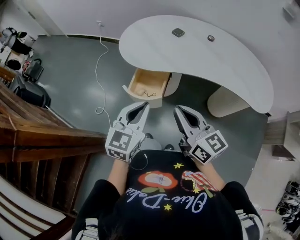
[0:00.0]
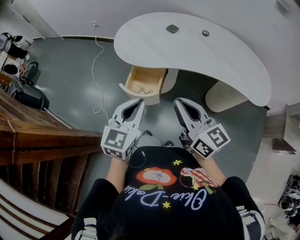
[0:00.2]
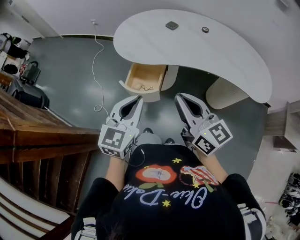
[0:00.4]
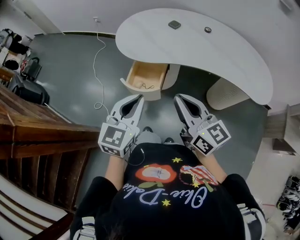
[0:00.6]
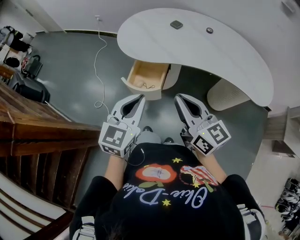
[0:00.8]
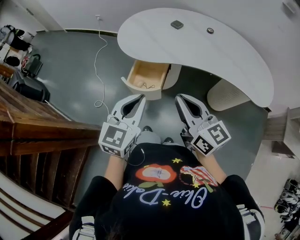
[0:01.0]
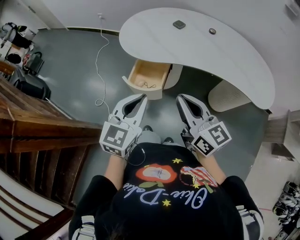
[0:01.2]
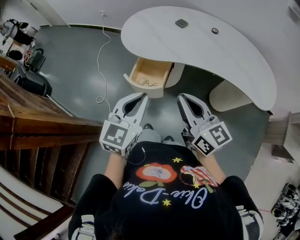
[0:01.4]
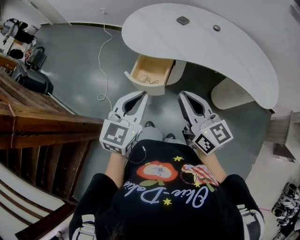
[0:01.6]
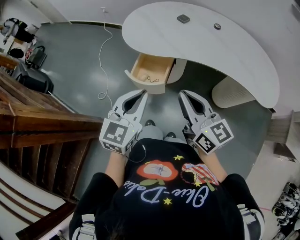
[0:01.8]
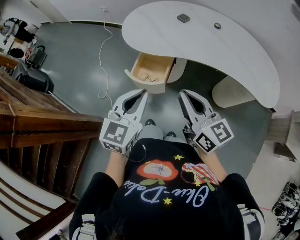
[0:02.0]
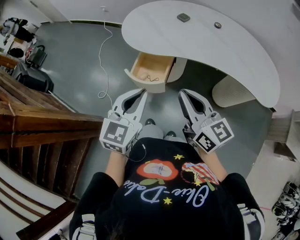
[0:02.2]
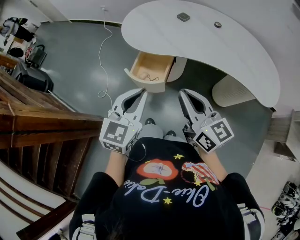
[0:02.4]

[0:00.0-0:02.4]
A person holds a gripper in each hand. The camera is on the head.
0:00.0 to 0:01.2: The grippers make only small movements.
0:01.2 to 0:02.4: Neither gripper changes place.

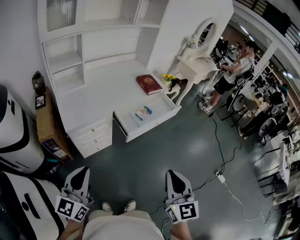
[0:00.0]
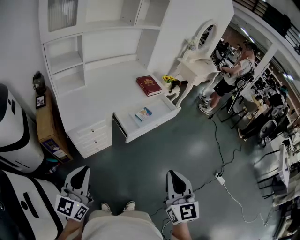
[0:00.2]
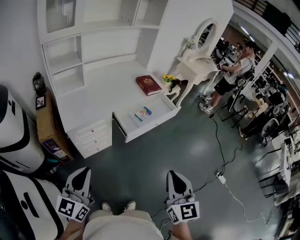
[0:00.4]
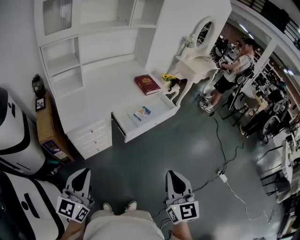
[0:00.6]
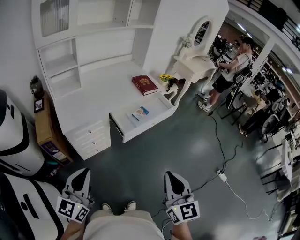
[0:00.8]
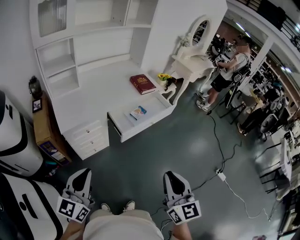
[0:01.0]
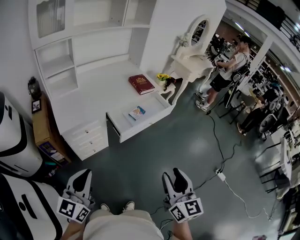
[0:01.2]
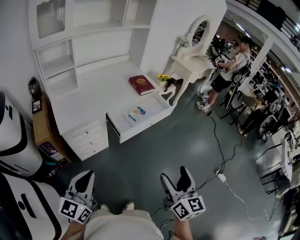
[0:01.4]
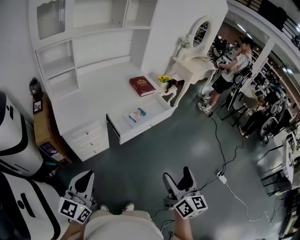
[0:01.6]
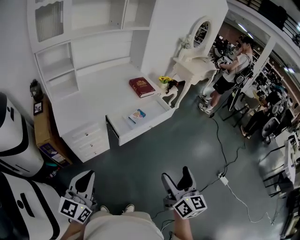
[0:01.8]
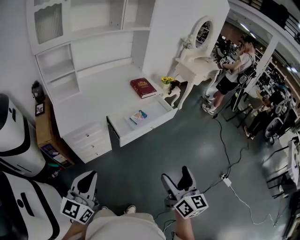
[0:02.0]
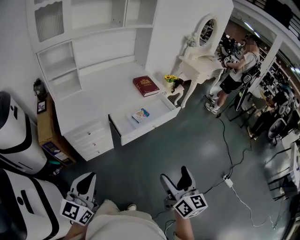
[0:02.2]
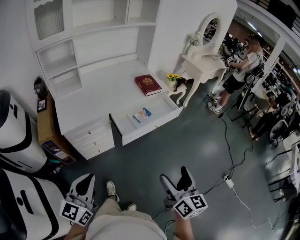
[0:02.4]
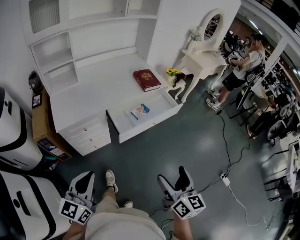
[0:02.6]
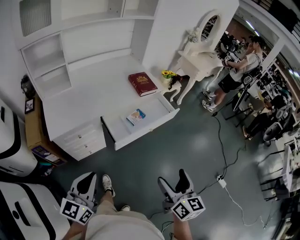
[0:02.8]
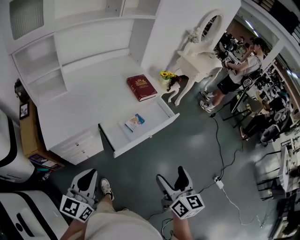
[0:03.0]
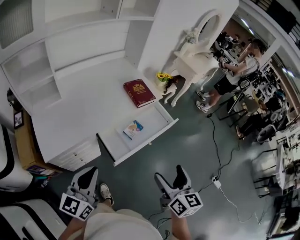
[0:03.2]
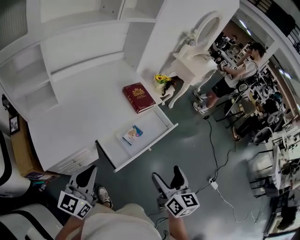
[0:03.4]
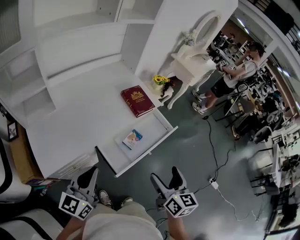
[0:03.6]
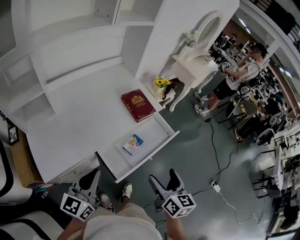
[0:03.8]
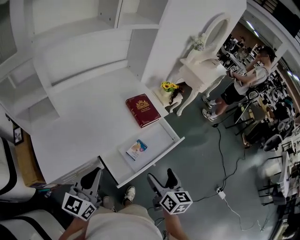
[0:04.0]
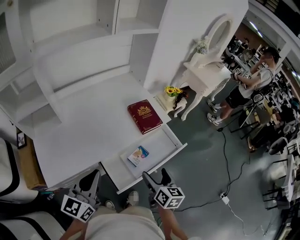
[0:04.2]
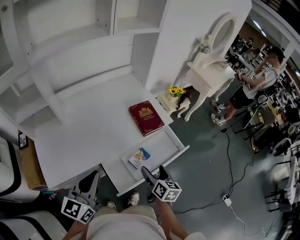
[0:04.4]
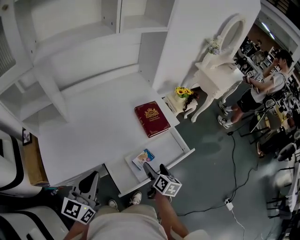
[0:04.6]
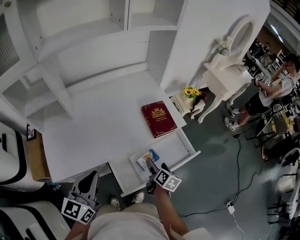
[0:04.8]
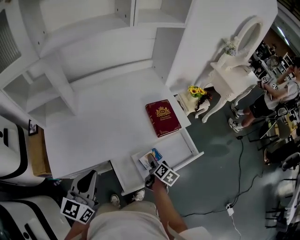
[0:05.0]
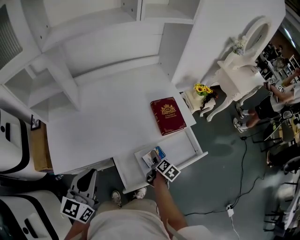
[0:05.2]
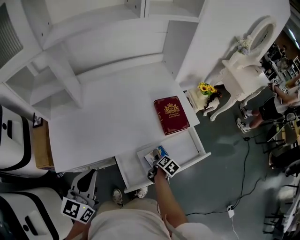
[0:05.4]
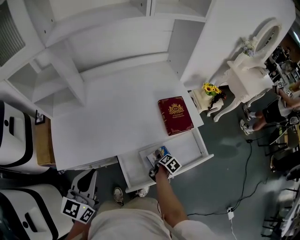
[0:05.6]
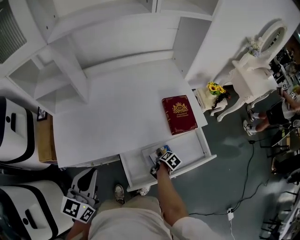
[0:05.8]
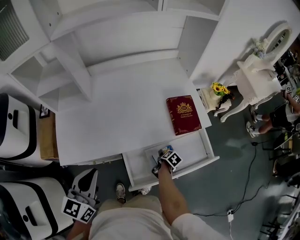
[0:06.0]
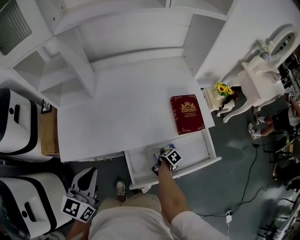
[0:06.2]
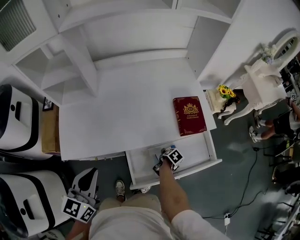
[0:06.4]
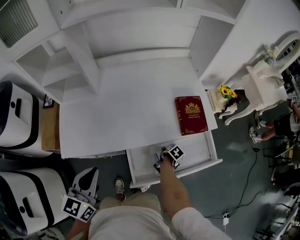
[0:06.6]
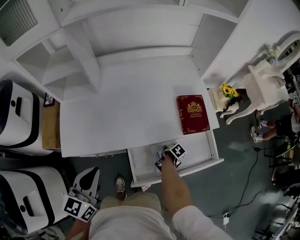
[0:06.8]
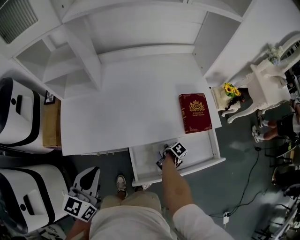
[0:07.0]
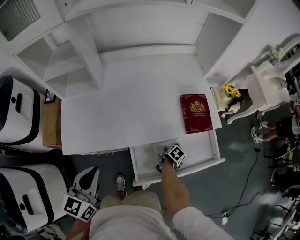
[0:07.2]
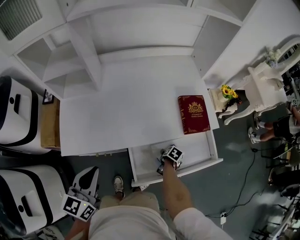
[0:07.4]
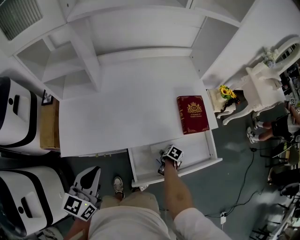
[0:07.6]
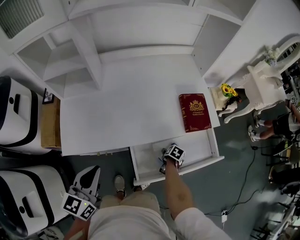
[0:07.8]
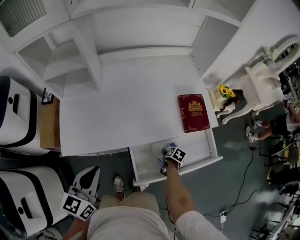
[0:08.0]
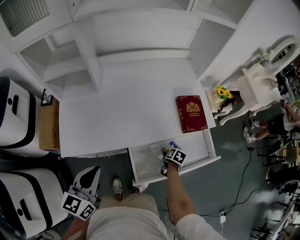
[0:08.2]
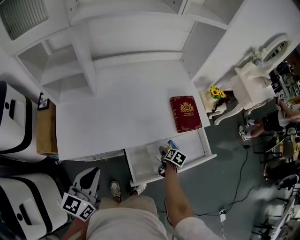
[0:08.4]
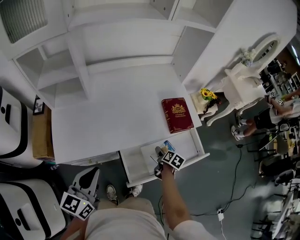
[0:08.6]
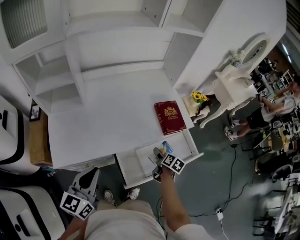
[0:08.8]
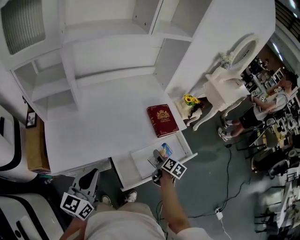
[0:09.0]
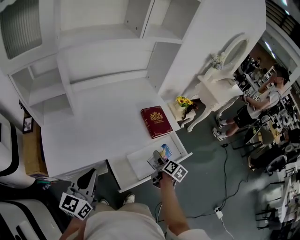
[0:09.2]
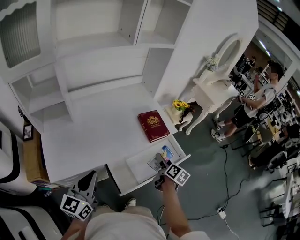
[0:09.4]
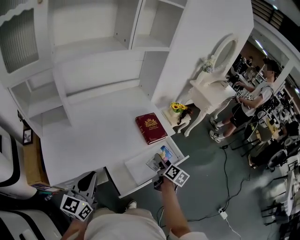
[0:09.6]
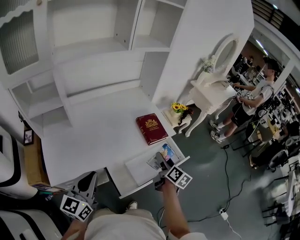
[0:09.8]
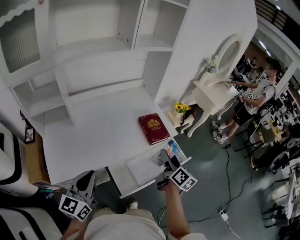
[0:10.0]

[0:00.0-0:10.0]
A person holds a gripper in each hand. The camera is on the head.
0:00.0 to 0:01.4: Both grippers move to the right, roughly 10 cm. The right gripper opens up.
0:01.4 to 0:02.8: The right gripper goes approximately 15 cm forward and downward; the left gripper is displaced forward by roughly 10 cm.
0:02.8 to 0:04.2: Both grippers move forward, approximately 35 cm.
0:04.2 to 0:05.8: The left gripper heads to the left, covering some 5 cm, and swivels some 20 degrees, while the right gripper is displaced downward and forward by about 30 cm, and tips its fingers downward by approximately 40 degrees.
0:05.8 to 0:07.2: The left gripper ends up approximately 5 cm from where it was.
0:07.2 to 0:08.6: The right gripper travels upward by about 10 cm, and rotates some 20 degrees.
0:08.6 to 0:10.0: The right gripper travels upward by some 30 cm, and tips its fingers upward by some 40 degrees; the left gripper is displaced upward by about 5 cm.

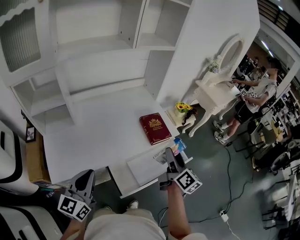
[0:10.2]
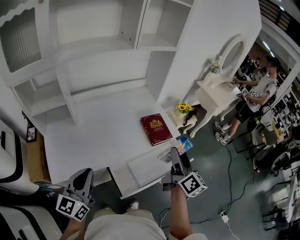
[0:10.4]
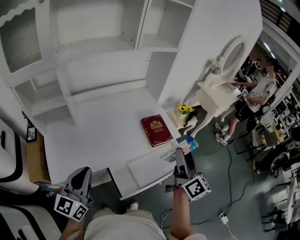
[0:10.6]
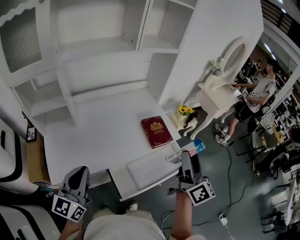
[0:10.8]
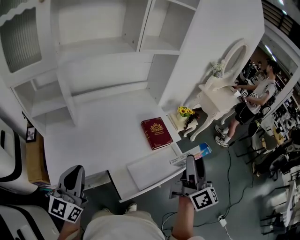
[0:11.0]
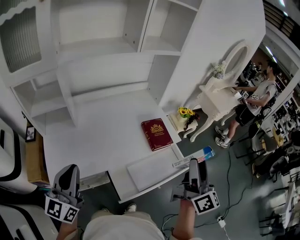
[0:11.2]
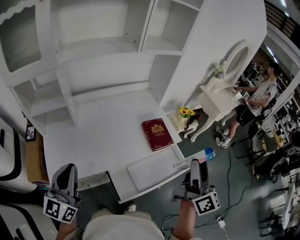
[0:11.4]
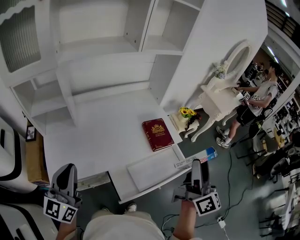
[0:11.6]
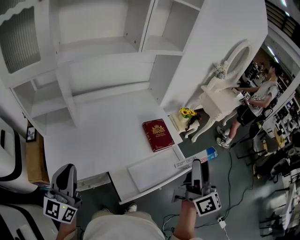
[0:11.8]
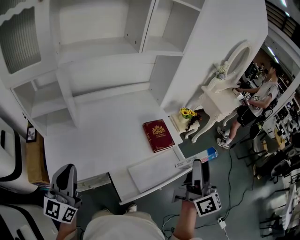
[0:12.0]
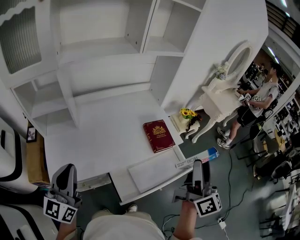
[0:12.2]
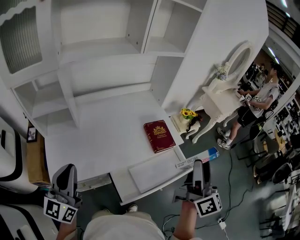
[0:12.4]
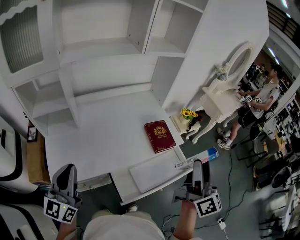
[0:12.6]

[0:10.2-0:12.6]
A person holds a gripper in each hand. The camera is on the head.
0:10.2 to 0:11.4: The right gripper heads upward, covering approximately 15 cm. The left gripper shifts approximately 10 cm upward and to the left.
0:11.4 to 0:12.6: There are only small adjustments of the grippers.

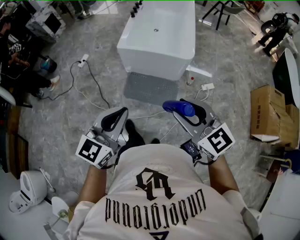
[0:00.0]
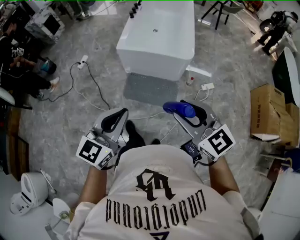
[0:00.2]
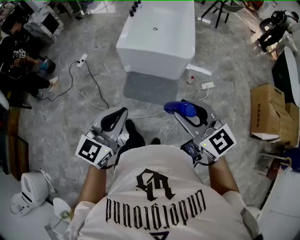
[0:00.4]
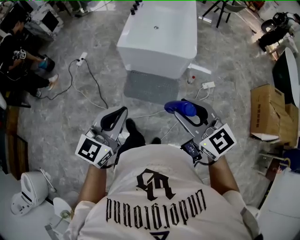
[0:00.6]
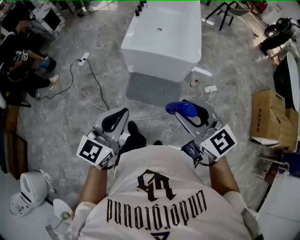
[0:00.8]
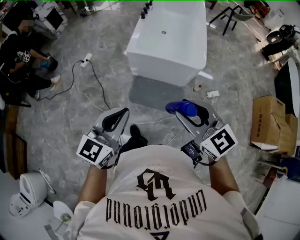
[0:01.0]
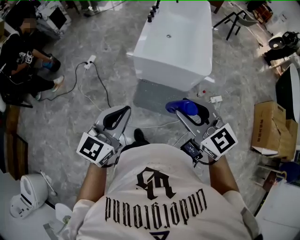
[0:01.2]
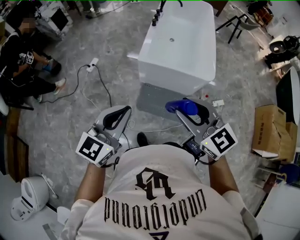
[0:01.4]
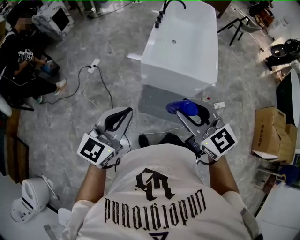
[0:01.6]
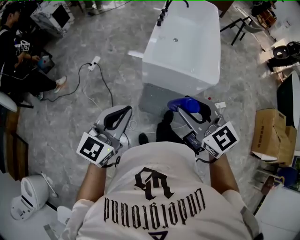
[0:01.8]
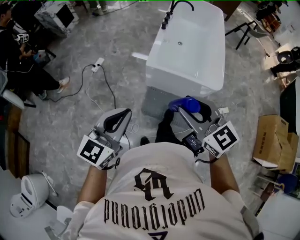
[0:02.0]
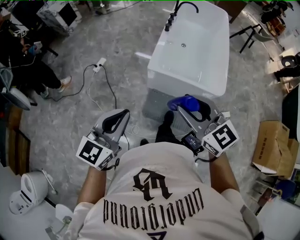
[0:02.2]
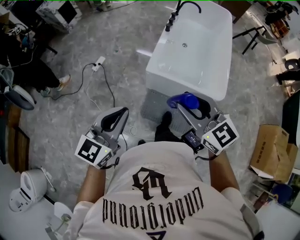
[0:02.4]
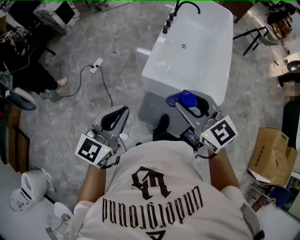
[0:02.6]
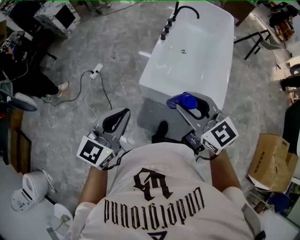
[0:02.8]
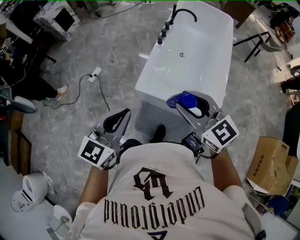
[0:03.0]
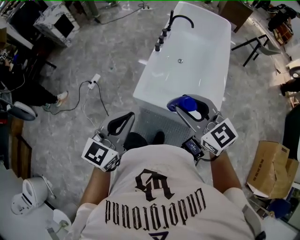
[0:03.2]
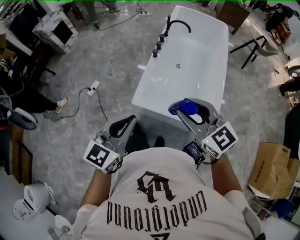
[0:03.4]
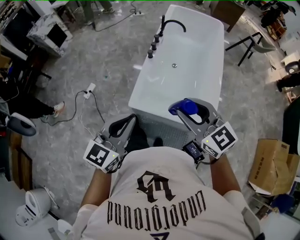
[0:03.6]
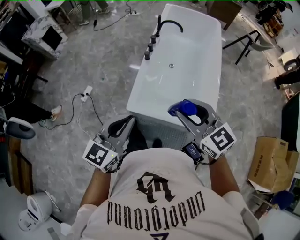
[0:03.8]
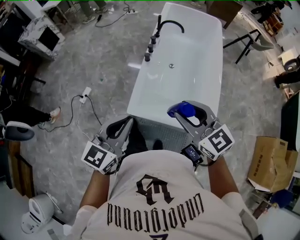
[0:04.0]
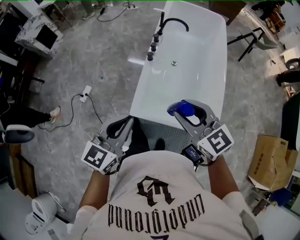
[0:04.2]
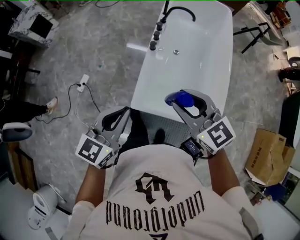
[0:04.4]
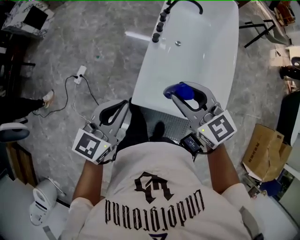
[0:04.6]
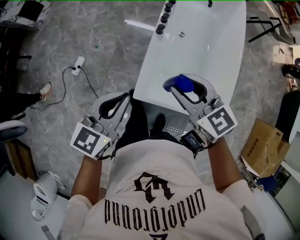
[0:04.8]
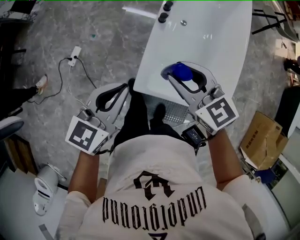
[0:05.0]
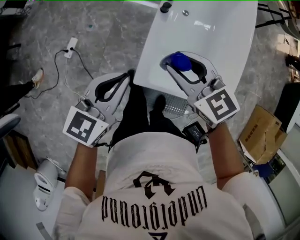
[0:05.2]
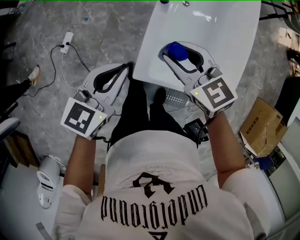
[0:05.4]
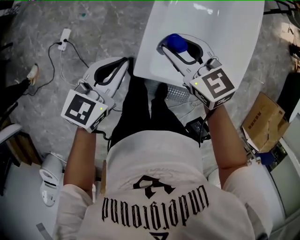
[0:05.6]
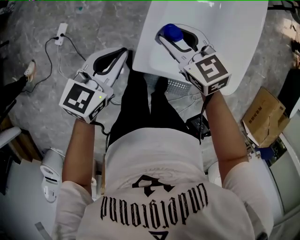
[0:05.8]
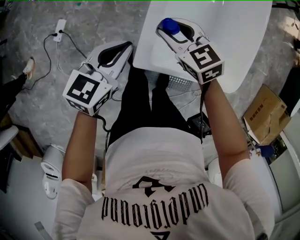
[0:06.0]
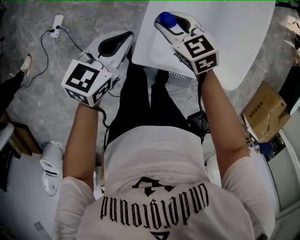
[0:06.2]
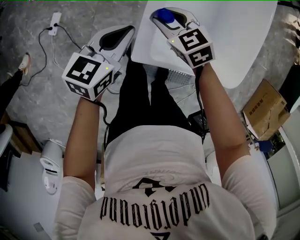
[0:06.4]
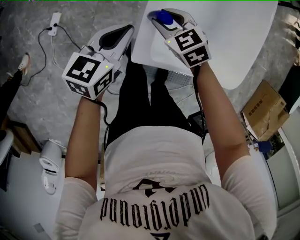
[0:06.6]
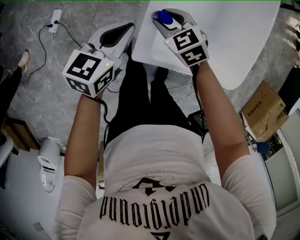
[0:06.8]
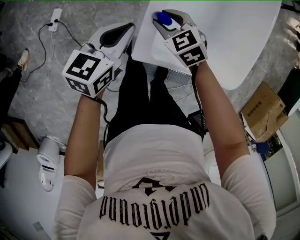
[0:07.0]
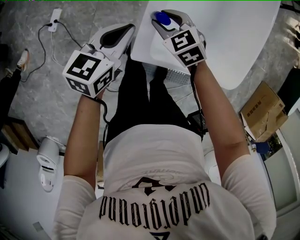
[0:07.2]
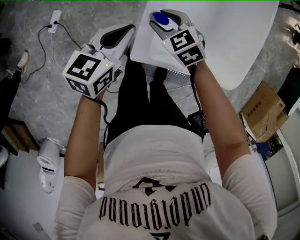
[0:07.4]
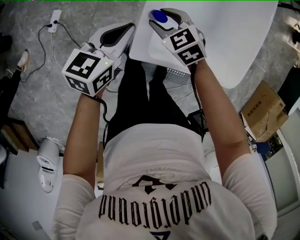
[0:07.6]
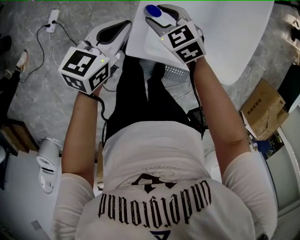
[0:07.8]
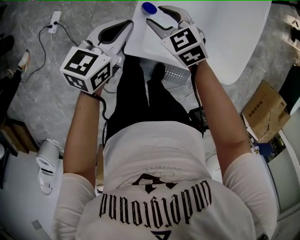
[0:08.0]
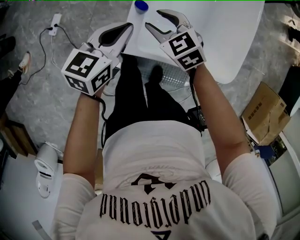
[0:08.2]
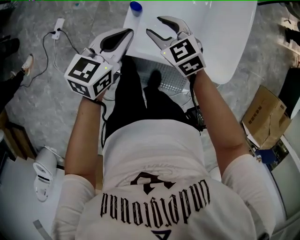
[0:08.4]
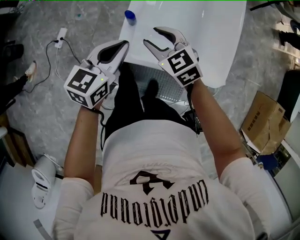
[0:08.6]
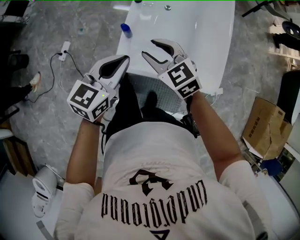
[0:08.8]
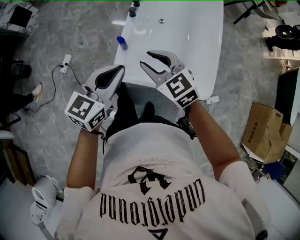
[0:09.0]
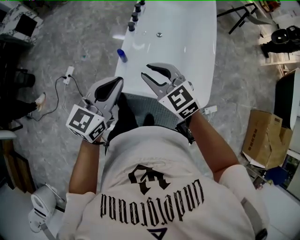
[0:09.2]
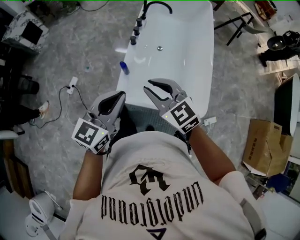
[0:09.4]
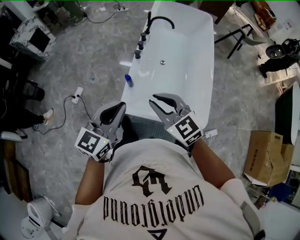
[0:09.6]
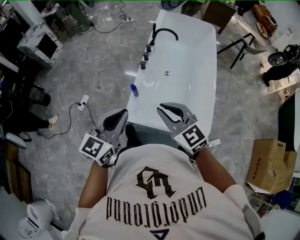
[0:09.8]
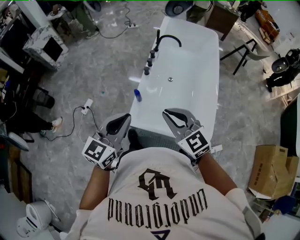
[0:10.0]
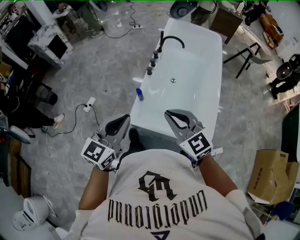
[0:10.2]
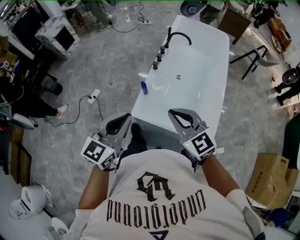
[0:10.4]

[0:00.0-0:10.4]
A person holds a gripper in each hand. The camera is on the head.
0:00.0 to 0:01.4: Both grippers move forward and to the left, some 25 cm.
0:01.4 to 0:03.0: The grippers both shift forward by some 35 cm.
0:03.0 to 0:04.4: Both grippers travel together forward, some 25 cm.
0:04.4 to 0:06.0: The grippers both shift downward and forward by about 35 cm. The right gripper changes its angle by some 20 degrees, while the left gripper changes its angle by approximately 20 degrees.
0:06.0 to 0:07.4: The right gripper heads downward, covering about 10 cm; the left gripper ends up some 5 cm from where it was.
0:07.4 to 0:09.0: Both grippers travel together upward and backward, roughly 30 cm. The left gripper changes its angle by about 20 degrees, while the right gripper turns by approximately 20 degrees.
0:09.0 to 0:10.4: The two grippers go some 20 cm upward and backward. The right gripper closes up.
